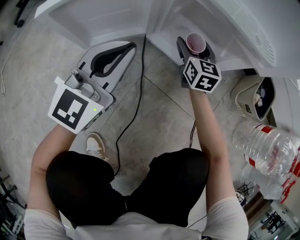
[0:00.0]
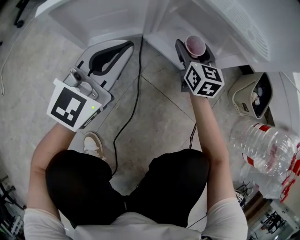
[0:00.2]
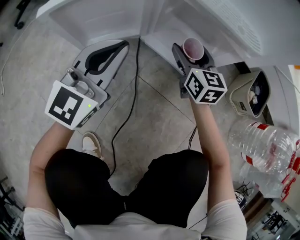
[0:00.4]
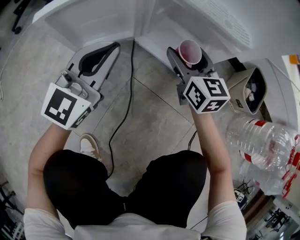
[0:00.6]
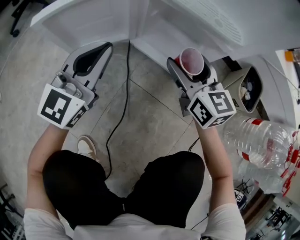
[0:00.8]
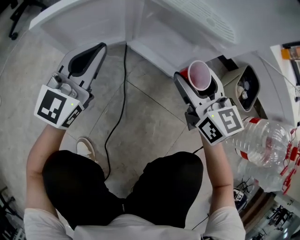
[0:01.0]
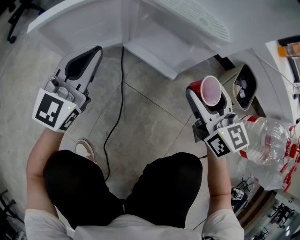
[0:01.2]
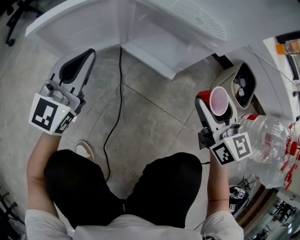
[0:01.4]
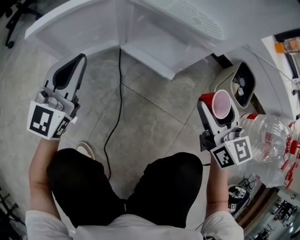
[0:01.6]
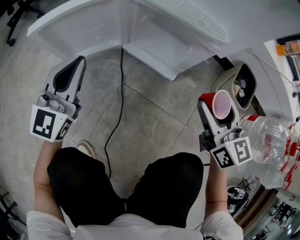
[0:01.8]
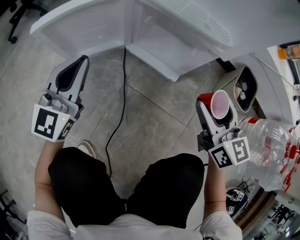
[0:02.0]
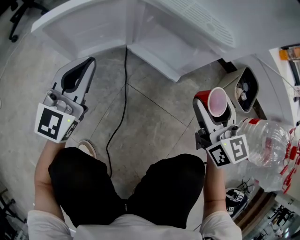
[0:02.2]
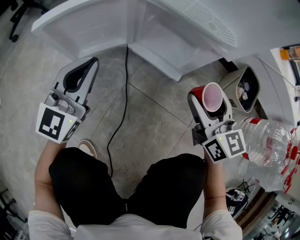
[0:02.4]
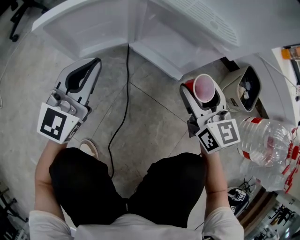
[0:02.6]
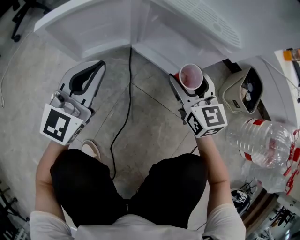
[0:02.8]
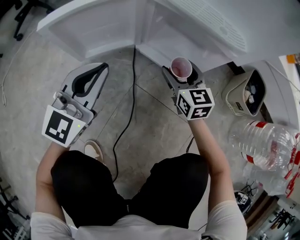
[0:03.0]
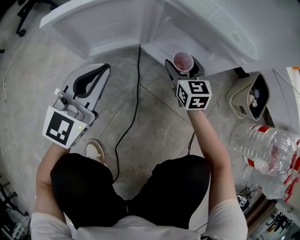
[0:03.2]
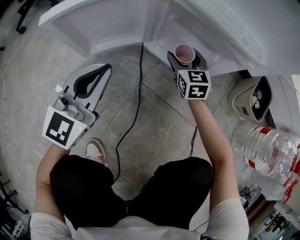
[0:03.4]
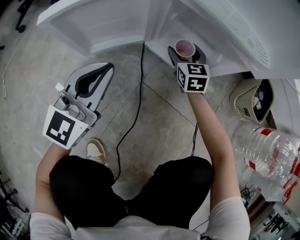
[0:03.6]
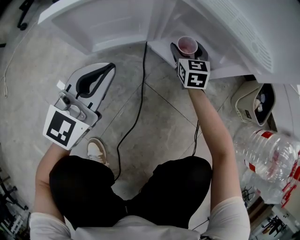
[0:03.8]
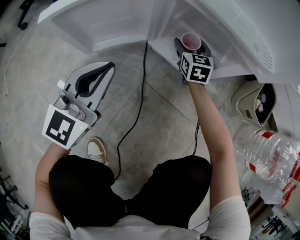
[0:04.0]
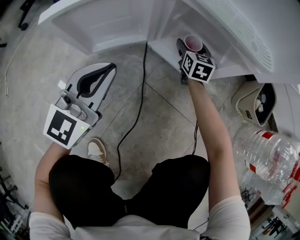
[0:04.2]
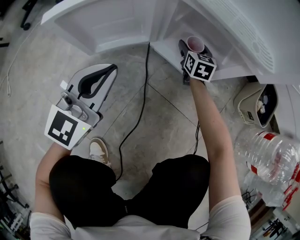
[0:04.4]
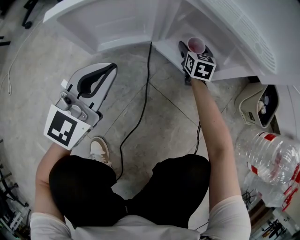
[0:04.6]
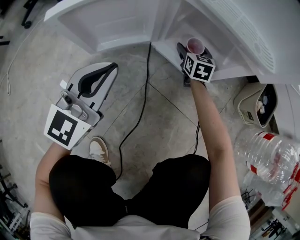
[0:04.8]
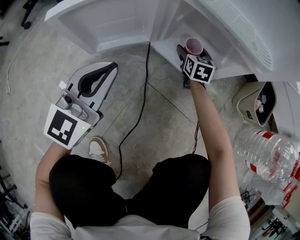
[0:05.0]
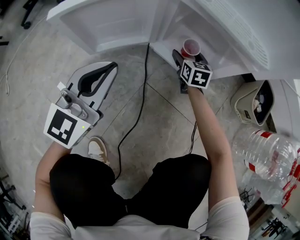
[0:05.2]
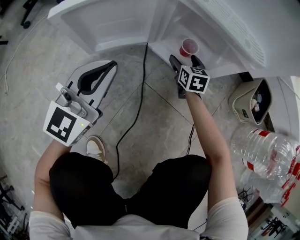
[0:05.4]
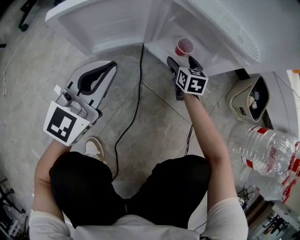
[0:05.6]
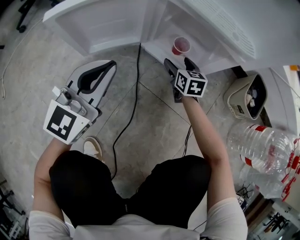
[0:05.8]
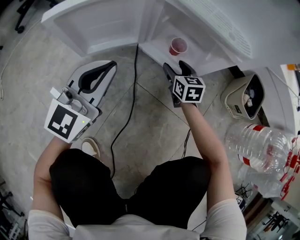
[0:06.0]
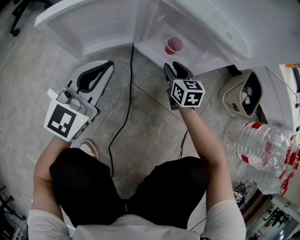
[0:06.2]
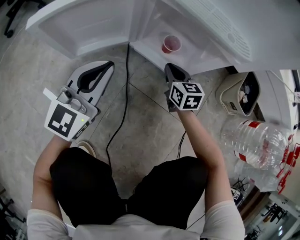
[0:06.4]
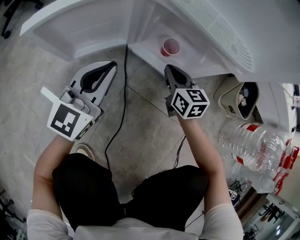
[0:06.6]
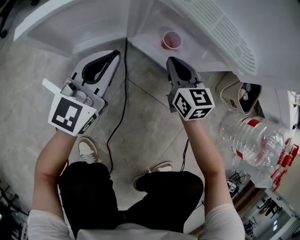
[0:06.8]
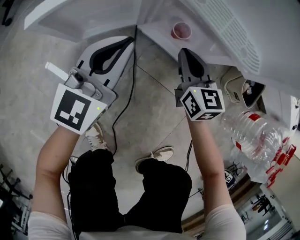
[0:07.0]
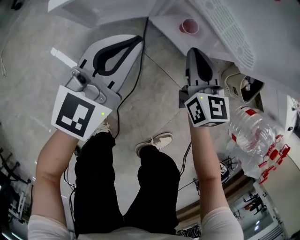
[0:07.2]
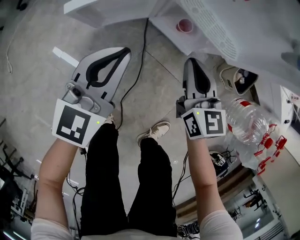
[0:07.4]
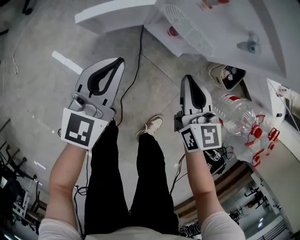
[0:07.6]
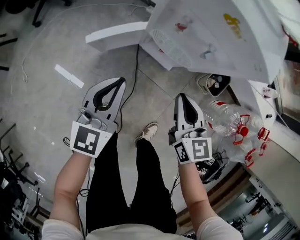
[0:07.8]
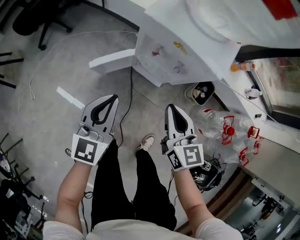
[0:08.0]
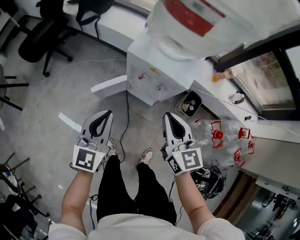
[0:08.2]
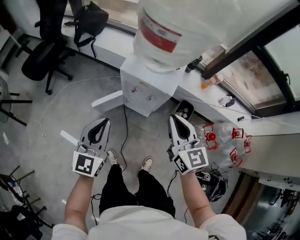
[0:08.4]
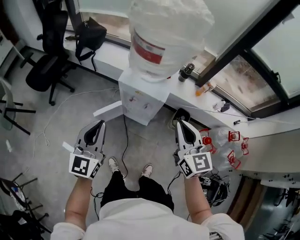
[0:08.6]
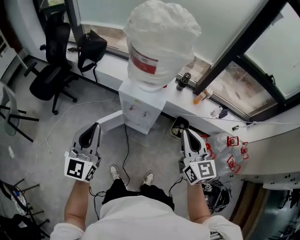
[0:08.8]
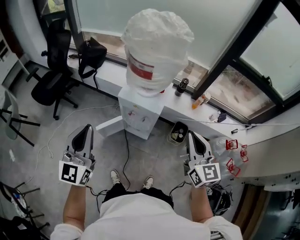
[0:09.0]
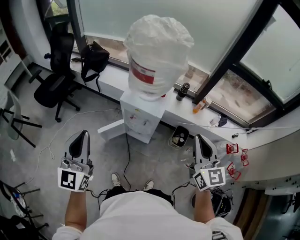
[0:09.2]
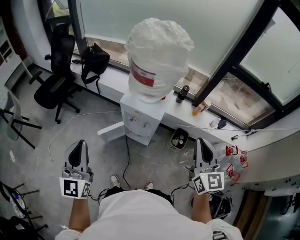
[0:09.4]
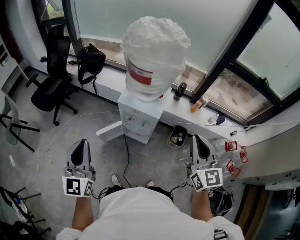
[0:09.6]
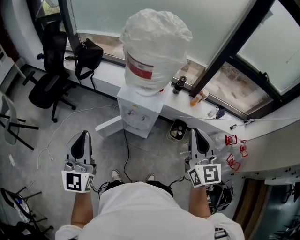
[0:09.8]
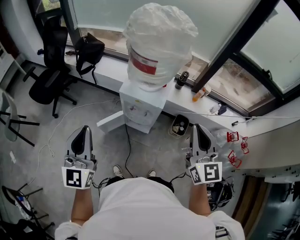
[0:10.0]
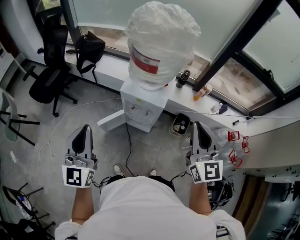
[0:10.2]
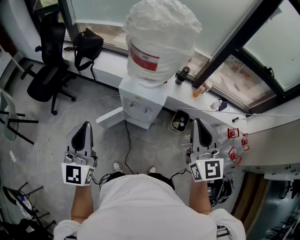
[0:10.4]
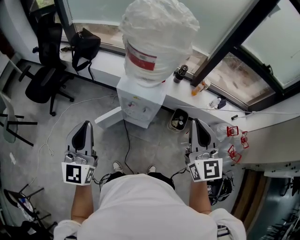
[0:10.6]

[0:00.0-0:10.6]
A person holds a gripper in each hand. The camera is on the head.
0.0 to 1.6 s: The right gripper shifts some 30 cm backward, upward and to the right.
1.6 to 3.0 s: The right gripper heads downward, to the left and forward, covering about 20 cm.
3.0 to 4.6 s: The right gripper moves forward and downward, some 15 cm.
4.6 to 6.0 s: The right gripper moves backward, approximately 10 cm.
6.0 to 7.6 s: The right gripper travels upward by approximately 40 cm, and closes up, while the left gripper goes about 25 cm upward.
7.6 to 9.0 s: The grippers both shift upward by roughly 60 cm. The left gripper turns by roughly 20 degrees. The right gripper swivels about 30 degrees.
9.0 to 10.6 s: The right gripper ends up roughly 5 cm from where it was.

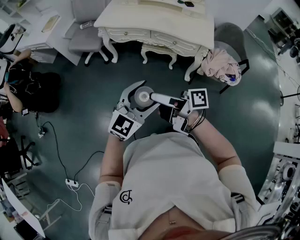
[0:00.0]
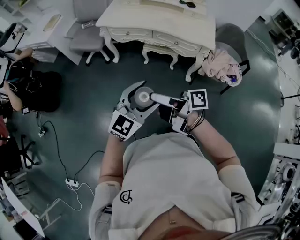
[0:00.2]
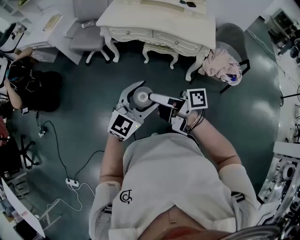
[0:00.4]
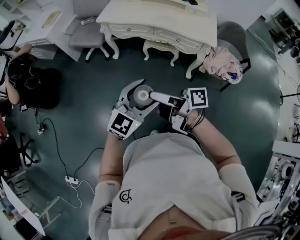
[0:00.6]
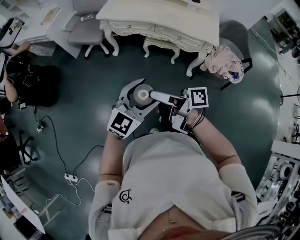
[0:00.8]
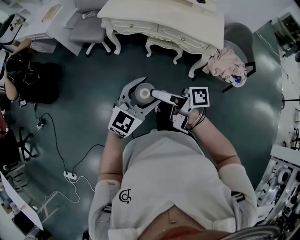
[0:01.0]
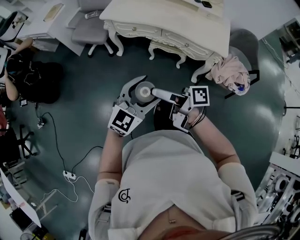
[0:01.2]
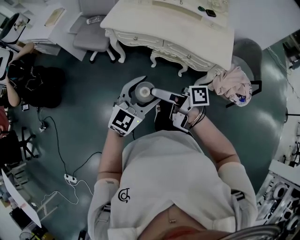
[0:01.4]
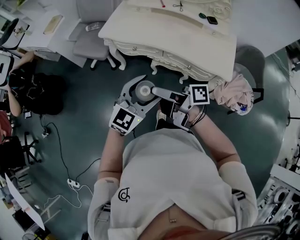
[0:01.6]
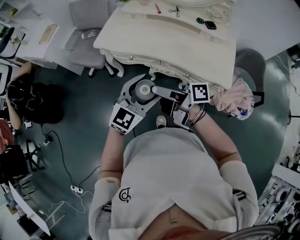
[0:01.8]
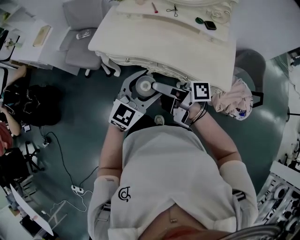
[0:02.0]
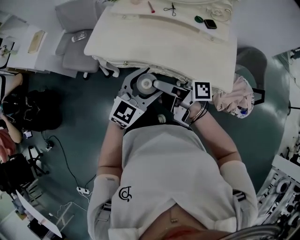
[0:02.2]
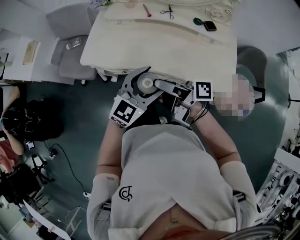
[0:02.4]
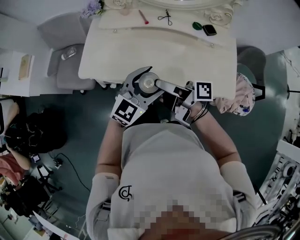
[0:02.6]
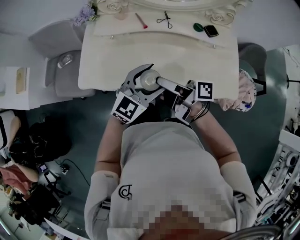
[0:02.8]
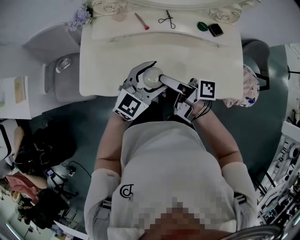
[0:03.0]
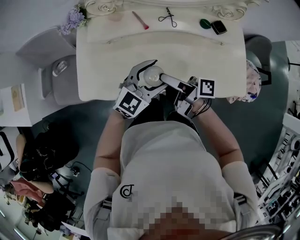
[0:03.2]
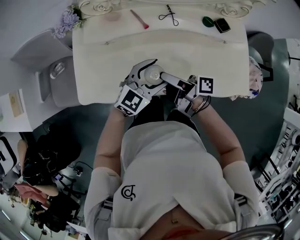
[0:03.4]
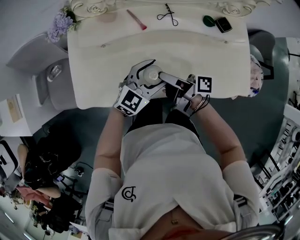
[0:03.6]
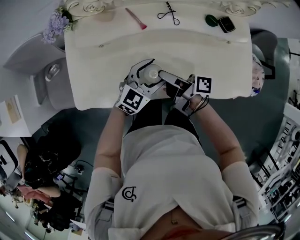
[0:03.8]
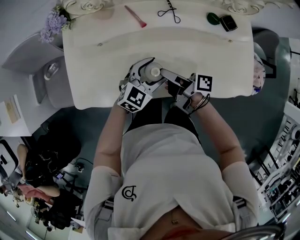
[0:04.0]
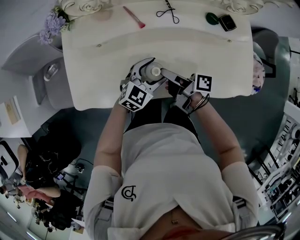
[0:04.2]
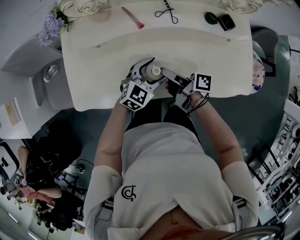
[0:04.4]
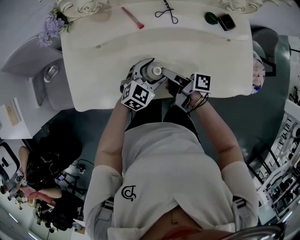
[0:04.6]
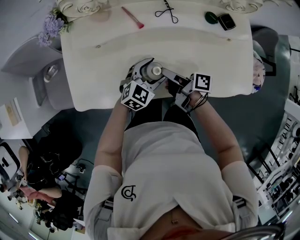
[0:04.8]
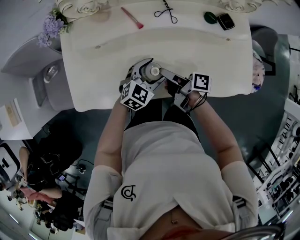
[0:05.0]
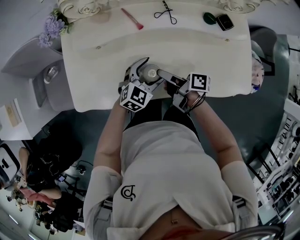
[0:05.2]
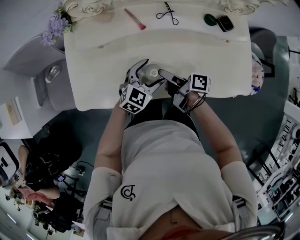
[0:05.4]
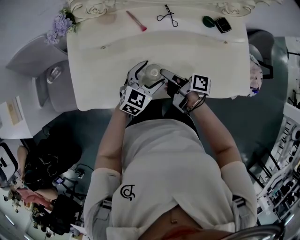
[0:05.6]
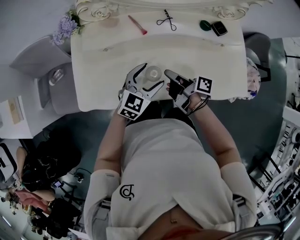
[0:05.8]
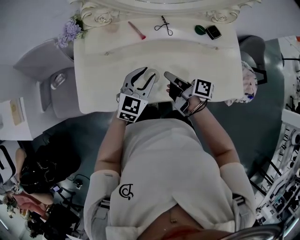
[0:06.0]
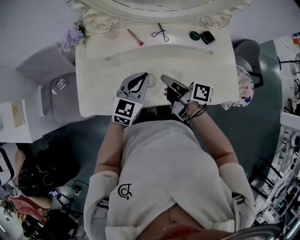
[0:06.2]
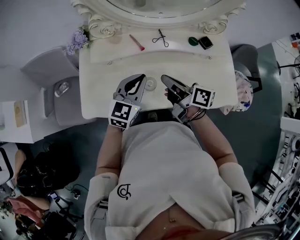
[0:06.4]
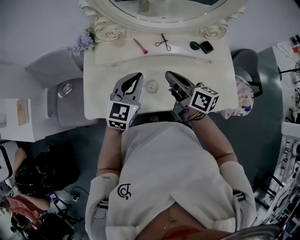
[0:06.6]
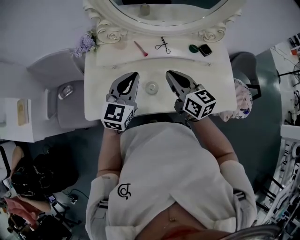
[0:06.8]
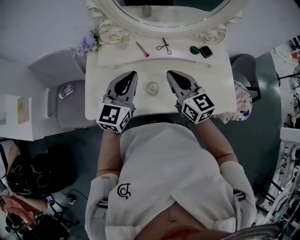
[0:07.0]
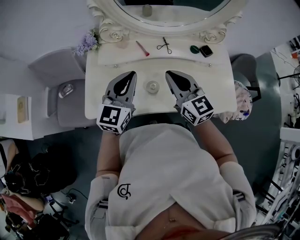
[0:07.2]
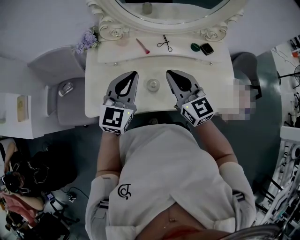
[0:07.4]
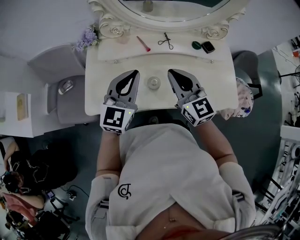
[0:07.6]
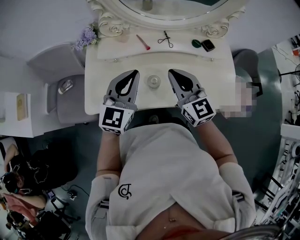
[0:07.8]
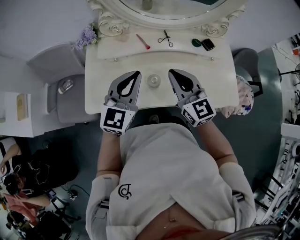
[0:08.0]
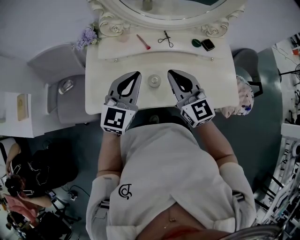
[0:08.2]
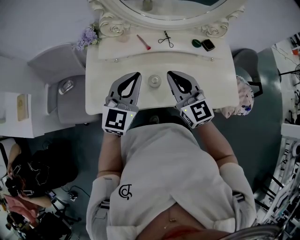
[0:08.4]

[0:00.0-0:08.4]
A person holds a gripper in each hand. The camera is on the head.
0.0 to 1.4 s: The left gripper moves roughly 20 cm.
1.4 to 2.8 s: The left gripper moves approximately 40 cm, and swivels approximately 20 degrees.
2.8 to 4.2 s: The left gripper is displaced downward by some 20 cm.
5.6 to 7.0 s: The left gripper is displaced upward by about 25 cm, rotates some 30 degrees, and closes.

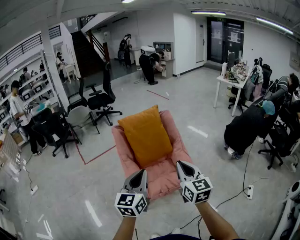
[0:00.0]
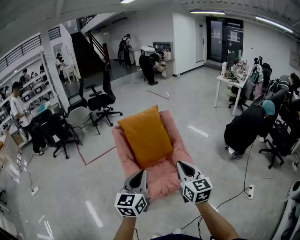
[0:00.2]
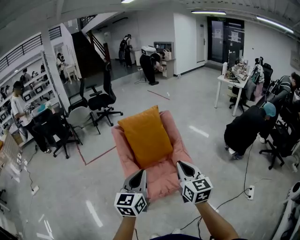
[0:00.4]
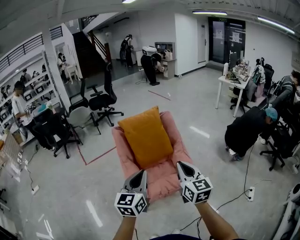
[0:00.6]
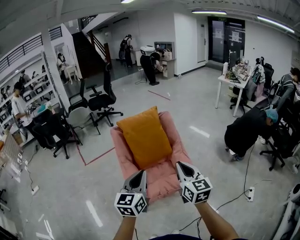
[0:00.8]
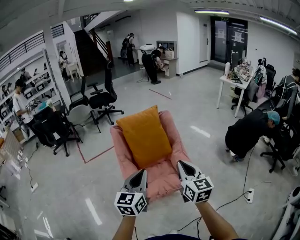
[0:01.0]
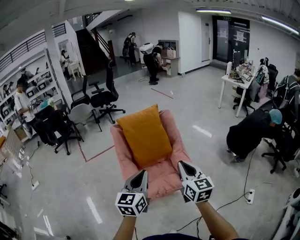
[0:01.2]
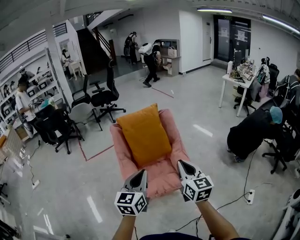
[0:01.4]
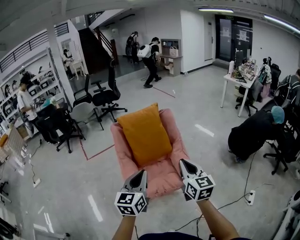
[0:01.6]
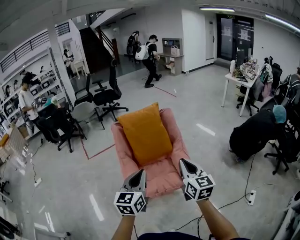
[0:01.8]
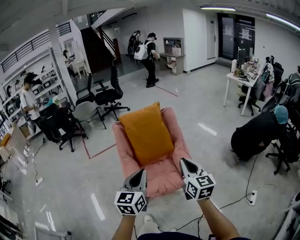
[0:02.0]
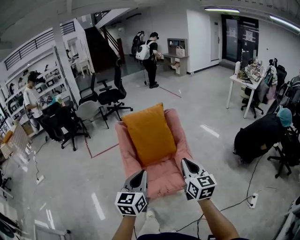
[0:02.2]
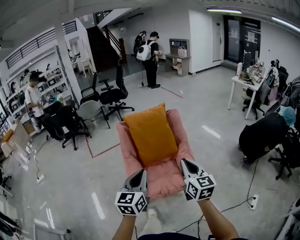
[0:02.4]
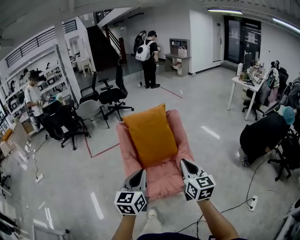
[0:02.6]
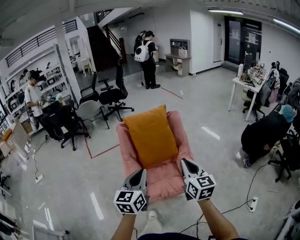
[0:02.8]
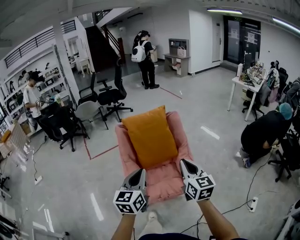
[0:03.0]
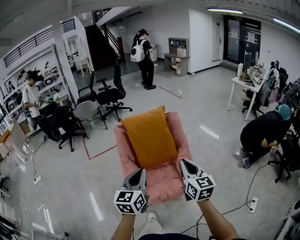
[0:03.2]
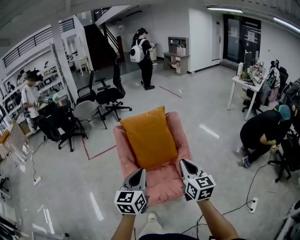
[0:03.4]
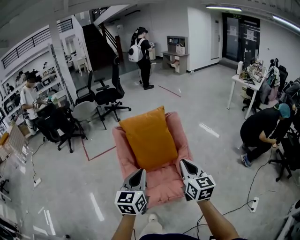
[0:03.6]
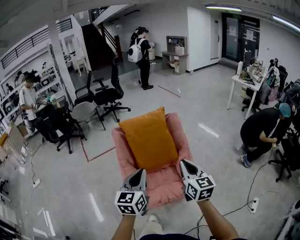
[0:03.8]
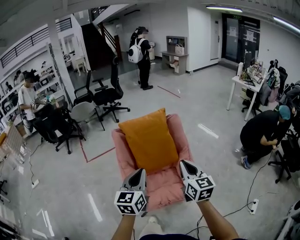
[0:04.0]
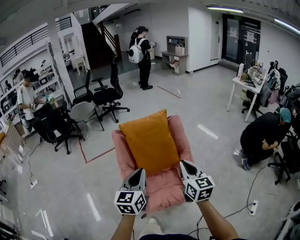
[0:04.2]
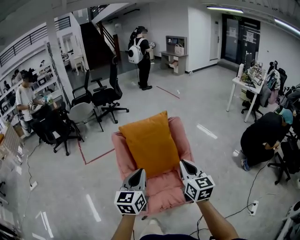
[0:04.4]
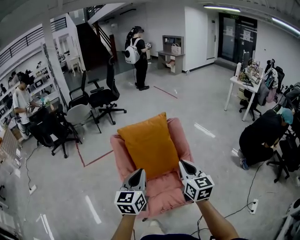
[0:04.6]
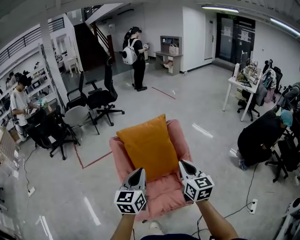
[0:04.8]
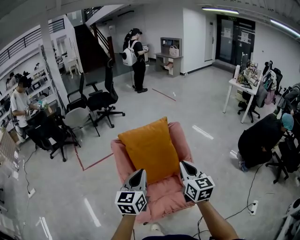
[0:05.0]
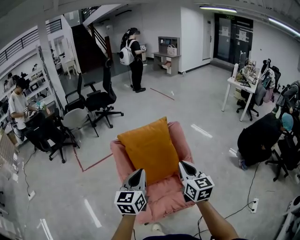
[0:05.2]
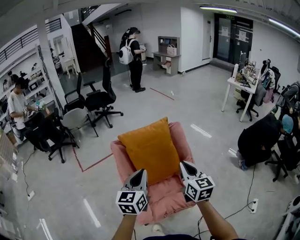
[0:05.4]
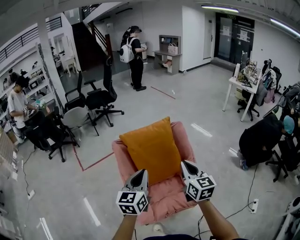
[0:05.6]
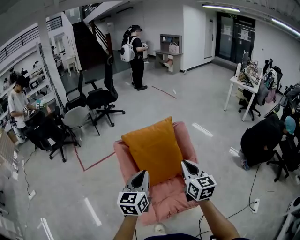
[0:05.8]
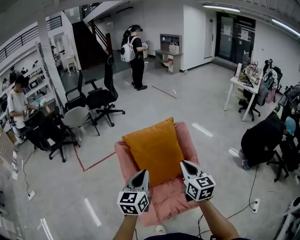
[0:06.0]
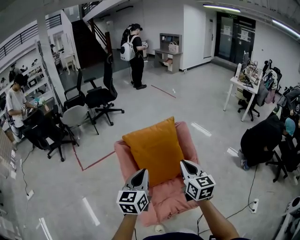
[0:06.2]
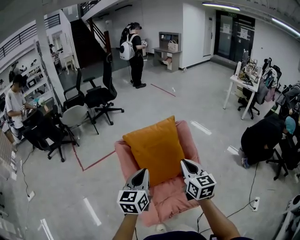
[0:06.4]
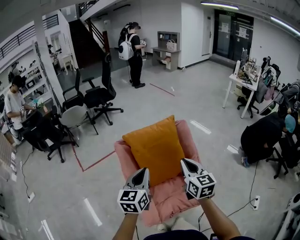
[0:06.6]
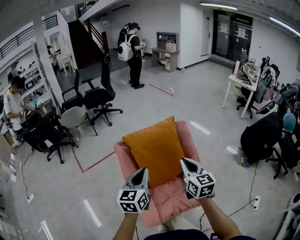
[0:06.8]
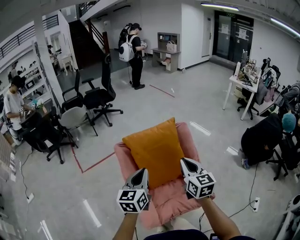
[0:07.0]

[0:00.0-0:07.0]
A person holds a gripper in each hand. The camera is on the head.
0.0 to 1.4 s: Both grippers travel together to the right, about 5 cm.
1.4 to 2.8 s: There are only small adjustments of the grippers.
2.8 to 4.2 s: Both grippers move forward, roughly 10 cm.
4.2 to 5.6 s: The grippers both shift forward by some 10 cm.
5.6 to 7.0 s: The right gripper ends up approximately 5 cm from where it was; the left gripper moves forward, roughly 5 cm.
